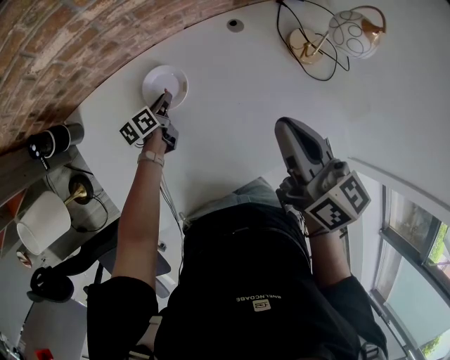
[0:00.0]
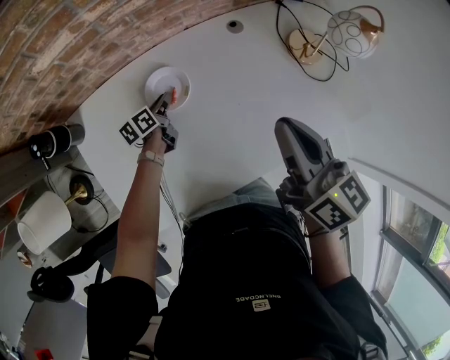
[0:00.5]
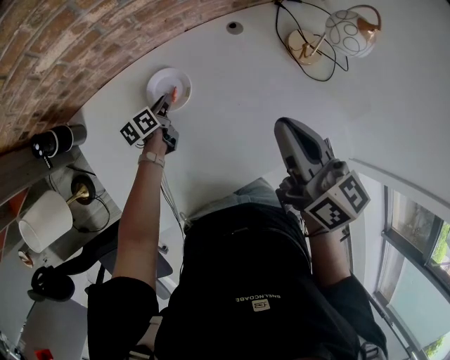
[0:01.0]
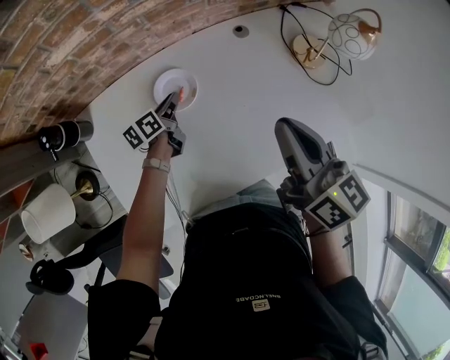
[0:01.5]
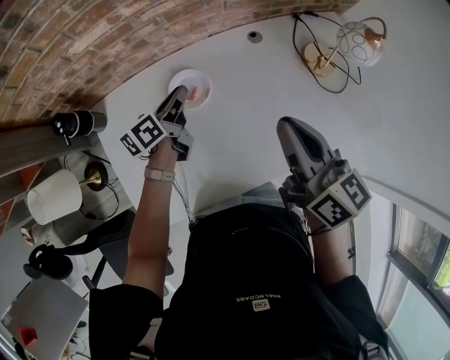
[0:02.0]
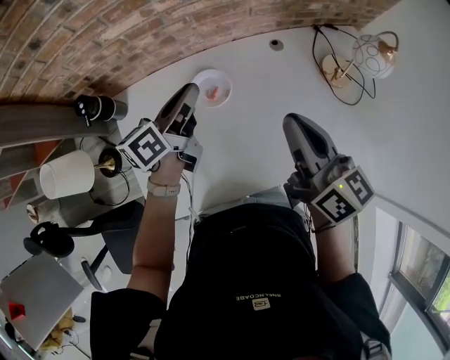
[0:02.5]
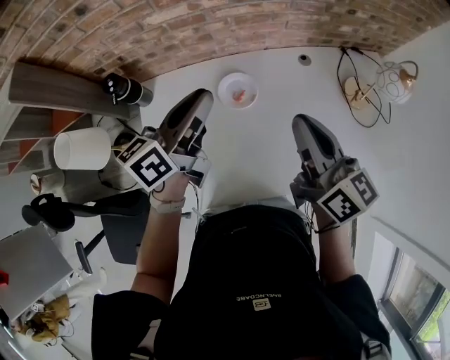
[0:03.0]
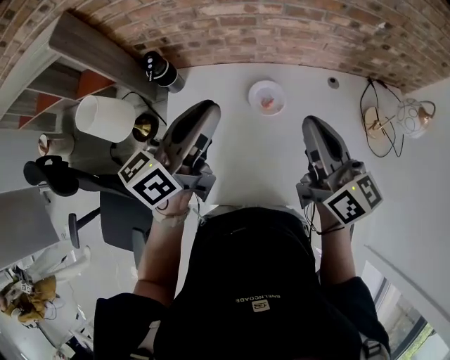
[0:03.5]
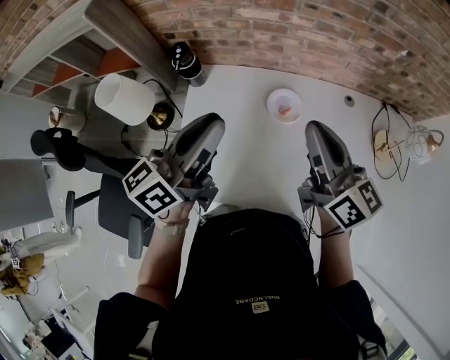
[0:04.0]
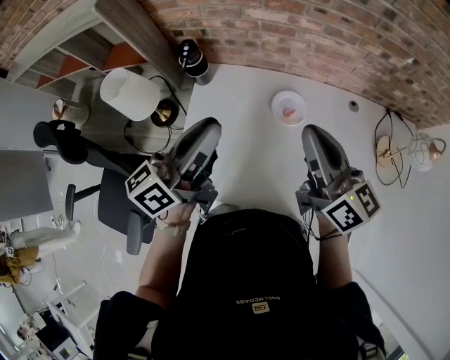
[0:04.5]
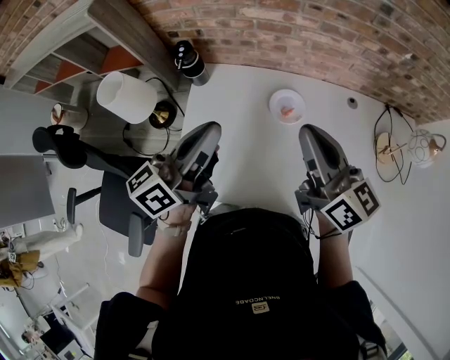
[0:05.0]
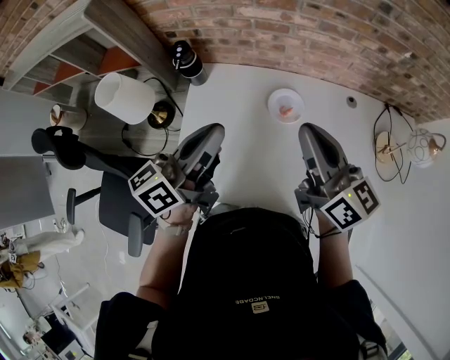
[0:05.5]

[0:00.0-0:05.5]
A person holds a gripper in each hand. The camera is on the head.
0:00.0 to 0:02.0: The left gripper goes roughly 20 cm upward.
0:02.0 to 0:03.5: The left gripper is displaced upward, backward and to the left by about 30 cm, and turns by roughly 30 degrees; the right gripper moves to the left, approximately 10 cm, and swivels approximately 20 degrees.
0:03.5 to 0:05.5: The right gripper heads to the left, covering about 5 cm; the left gripper moves approximately 5 cm.

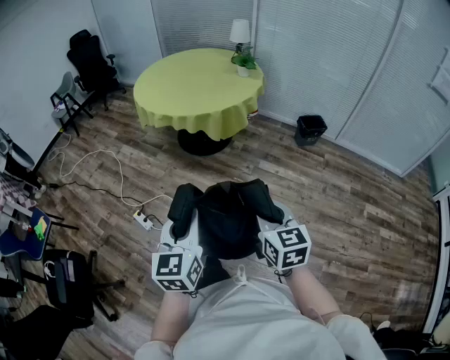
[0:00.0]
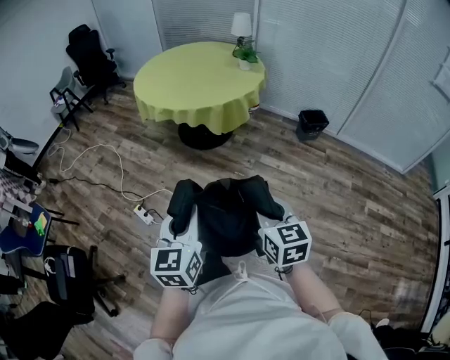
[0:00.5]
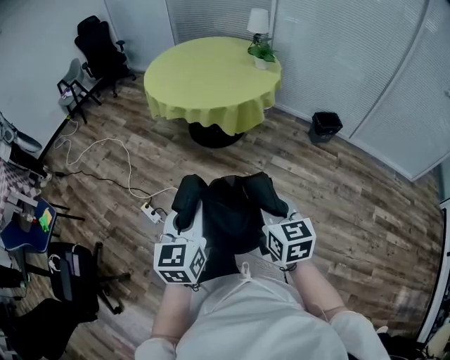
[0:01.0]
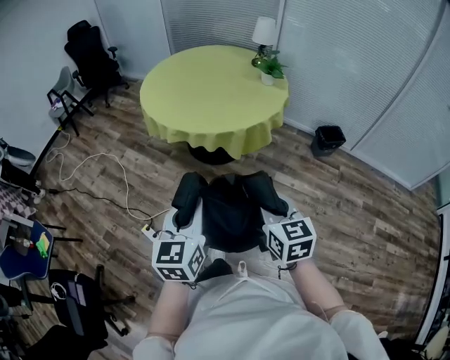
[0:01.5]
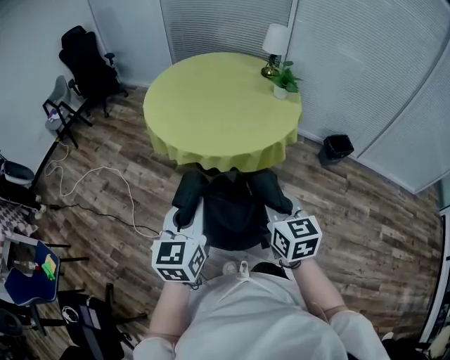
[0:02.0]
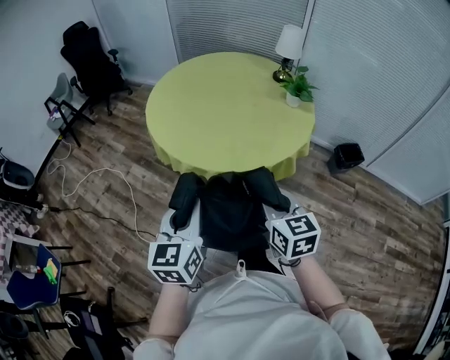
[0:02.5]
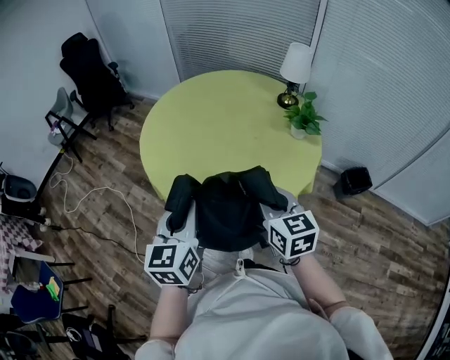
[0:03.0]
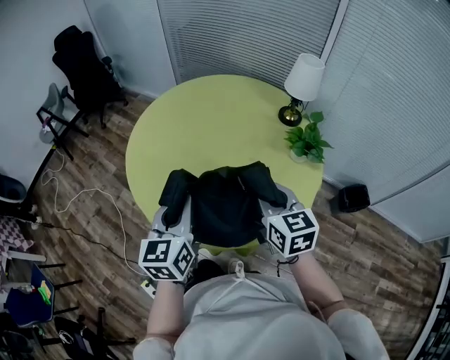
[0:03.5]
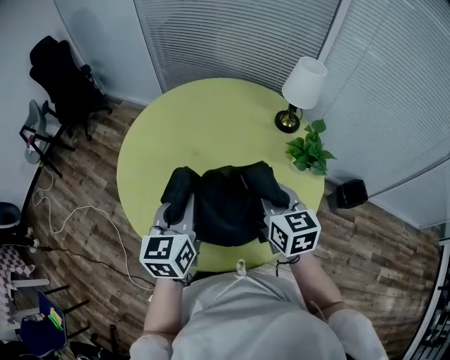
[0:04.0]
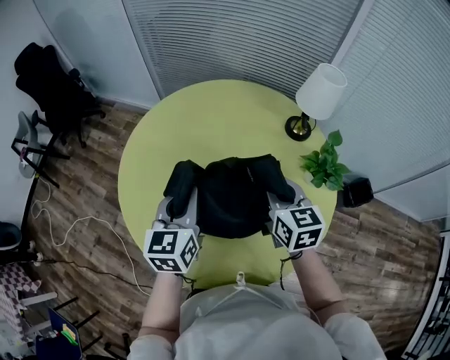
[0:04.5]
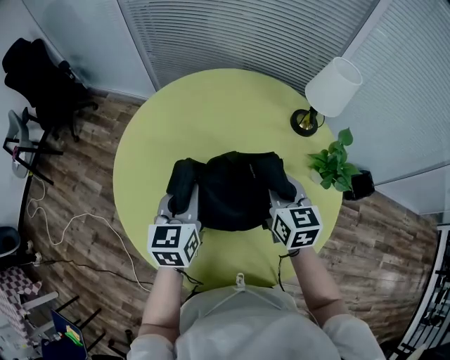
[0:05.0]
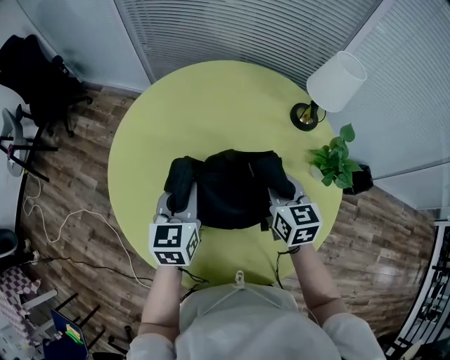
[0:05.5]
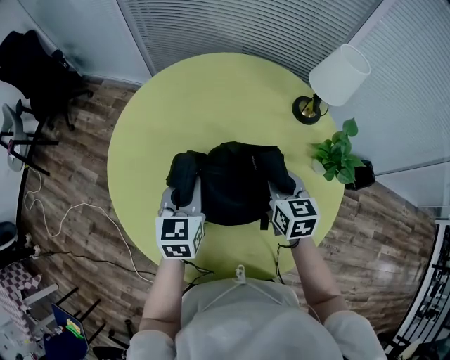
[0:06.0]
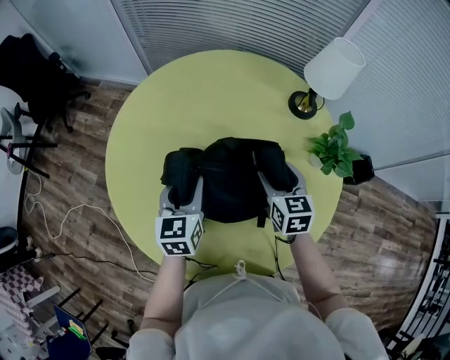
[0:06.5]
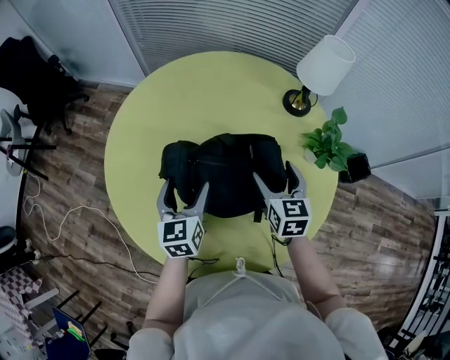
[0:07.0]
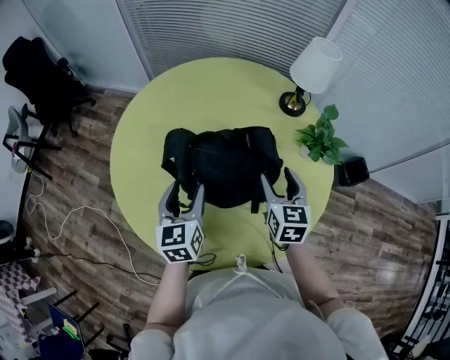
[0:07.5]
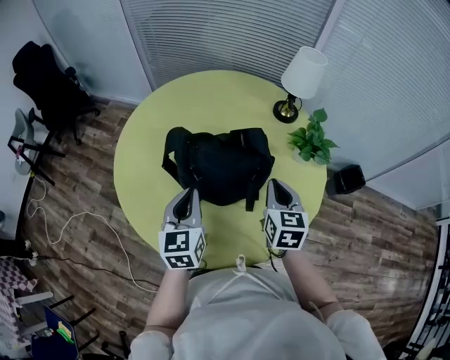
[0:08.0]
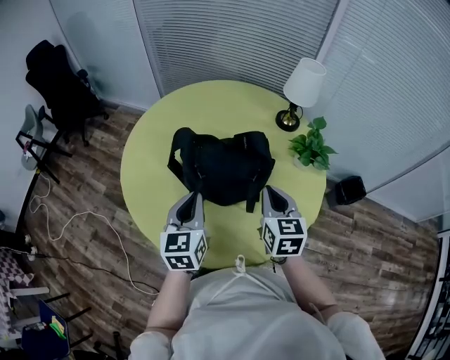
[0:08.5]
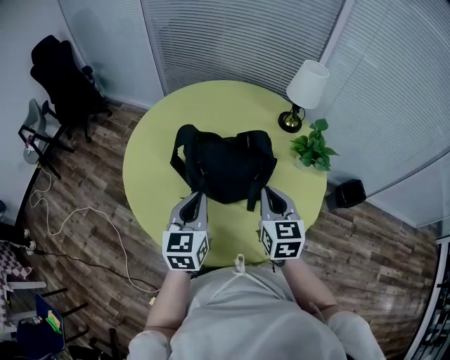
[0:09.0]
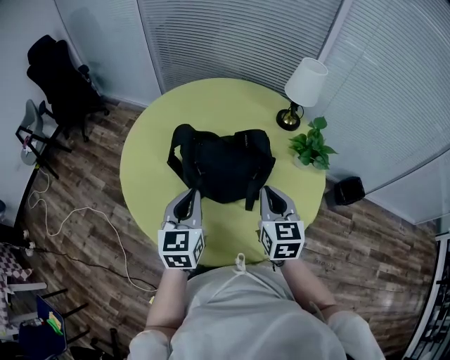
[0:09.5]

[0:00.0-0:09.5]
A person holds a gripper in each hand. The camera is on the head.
0:00.0 to 0:02.0: The two grippers travel together, forward, some 40 cm.
0:02.0 to 0:04.0: Both grippers are carried forward, some 60 cm.
0:04.0 to 0:05.5: The grippers both shift forward and downward by roughly 20 cm.
0:05.5 to 0:07.5: Both grippers move backward, some 10 cm. The right gripper opens. The left gripper opens.
0:07.5 to 0:09.5: Both grippers move backward and upward, about 10 cm. The left gripper closes up; the right gripper closes its fingers.

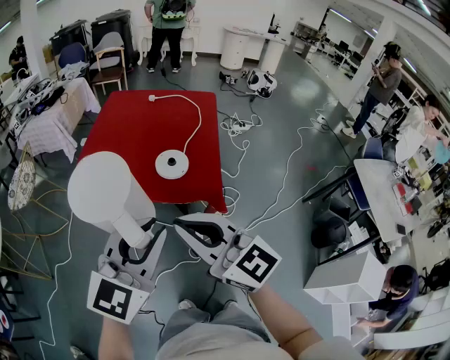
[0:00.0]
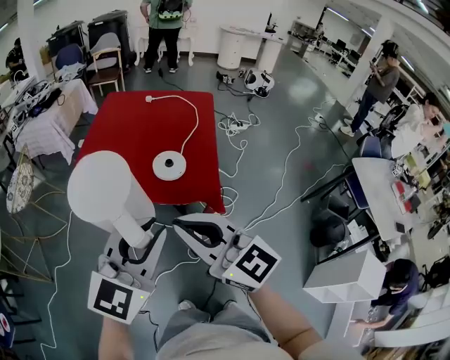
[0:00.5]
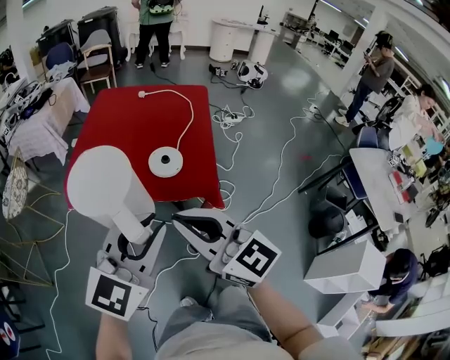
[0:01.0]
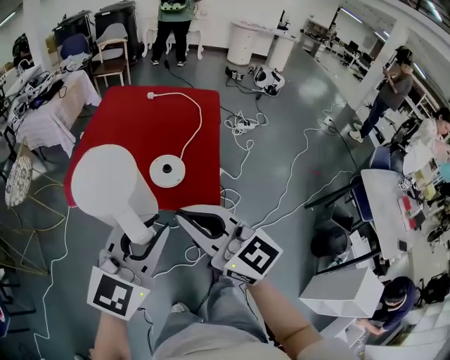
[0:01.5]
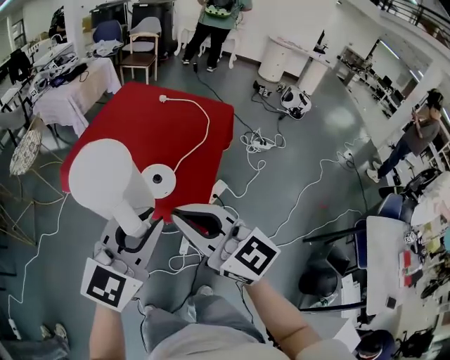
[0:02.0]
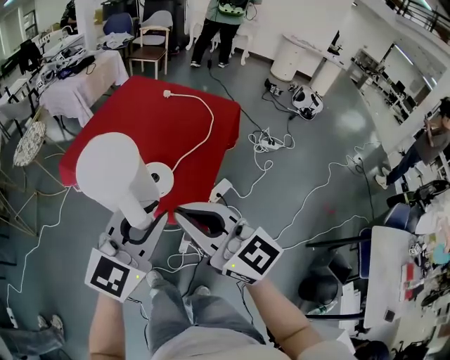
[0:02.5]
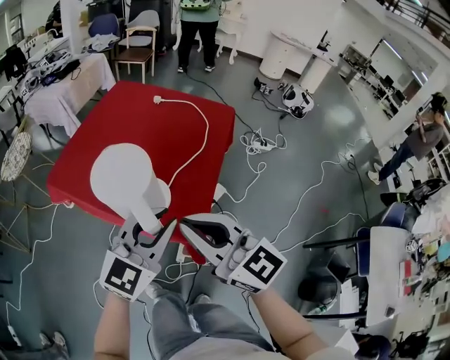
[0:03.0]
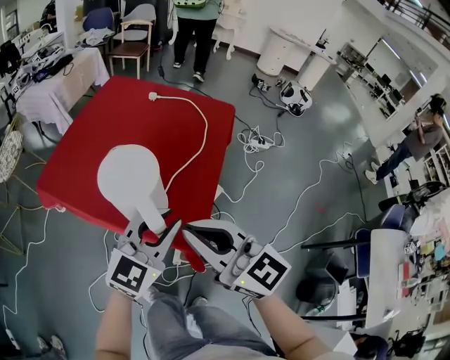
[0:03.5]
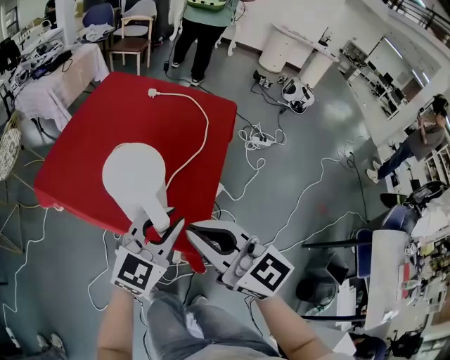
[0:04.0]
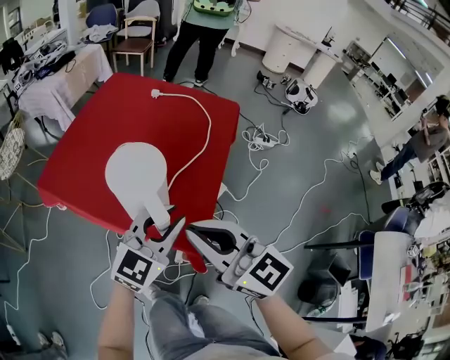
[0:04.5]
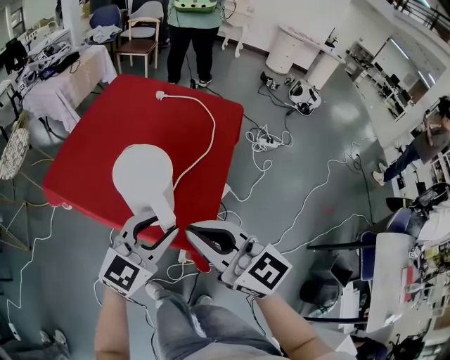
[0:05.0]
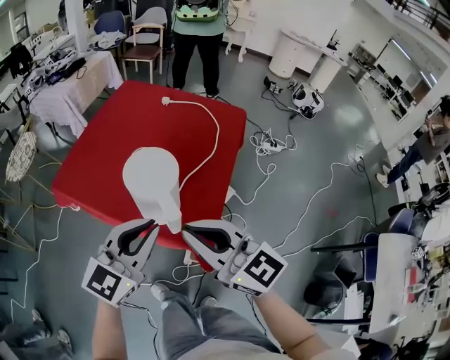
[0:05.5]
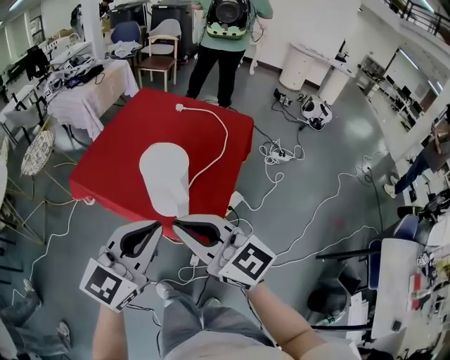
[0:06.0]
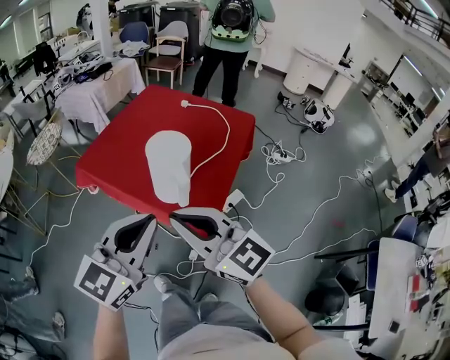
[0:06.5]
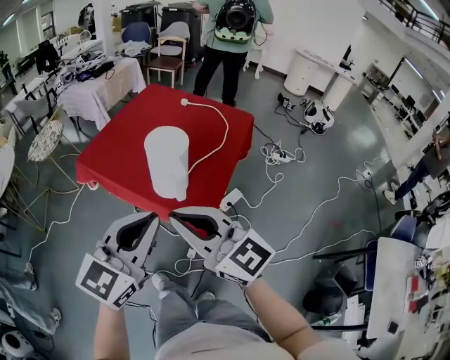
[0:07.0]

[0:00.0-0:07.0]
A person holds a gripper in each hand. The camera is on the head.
0:00.0 to 0:02.0: Both grippers move to the right and forward, approximately 20 cm.
0:02.0 to 0:03.5: The left gripper travels forward, downward and to the right by some 20 cm, while the right gripper shifts roughly 15 cm forward and downward.
0:03.5 to 0:05.0: The grippers make only small movements.
0:05.0 to 0:07.0: Both grippers travel together backward, upward and to the left, some 20 cm. The left gripper closes its fingers.

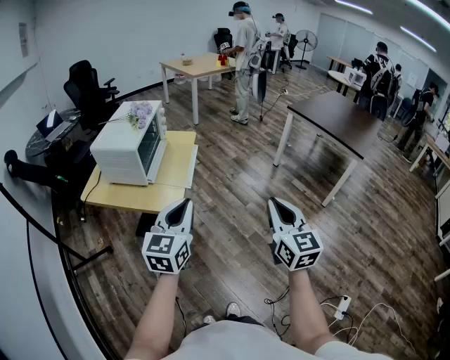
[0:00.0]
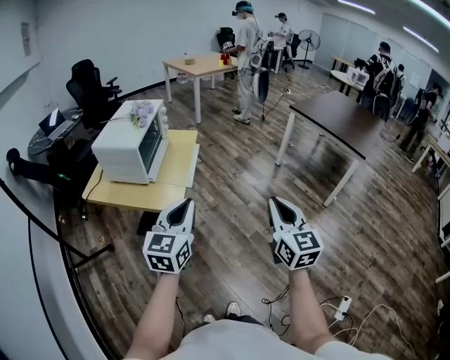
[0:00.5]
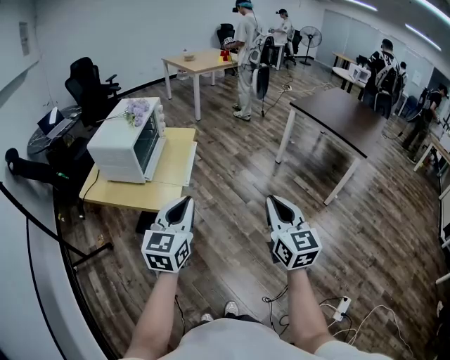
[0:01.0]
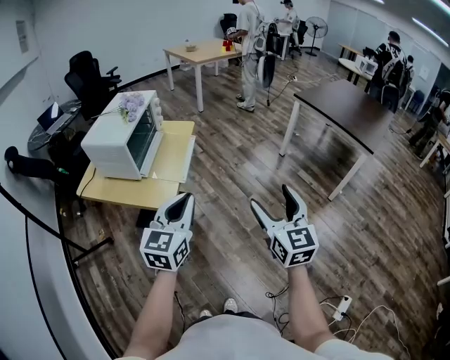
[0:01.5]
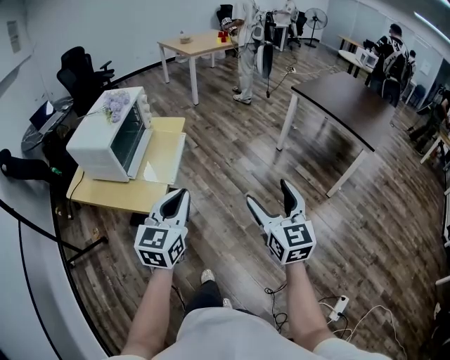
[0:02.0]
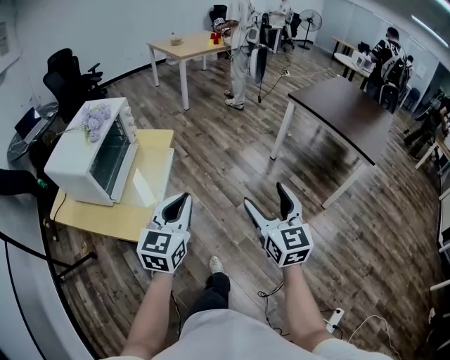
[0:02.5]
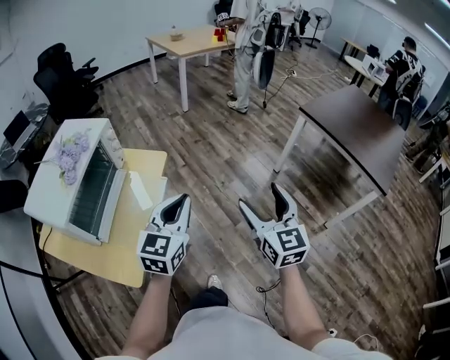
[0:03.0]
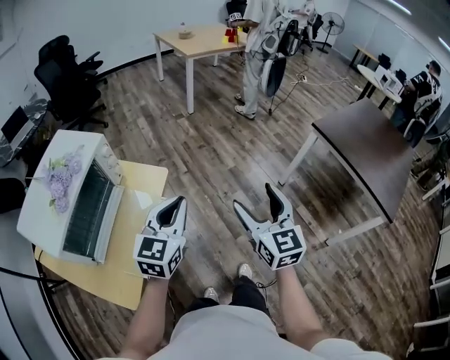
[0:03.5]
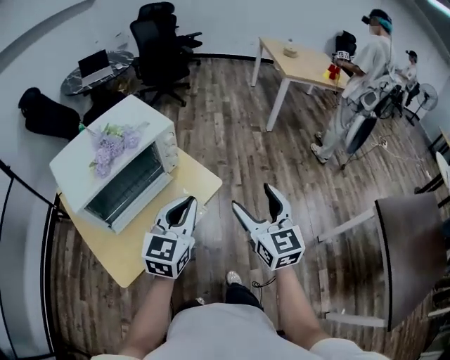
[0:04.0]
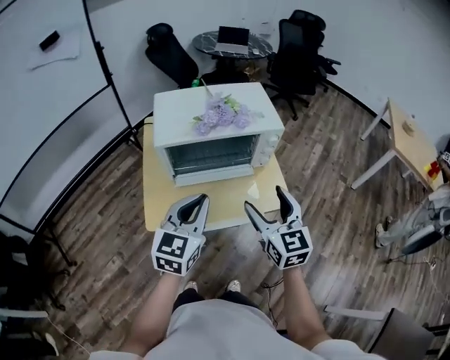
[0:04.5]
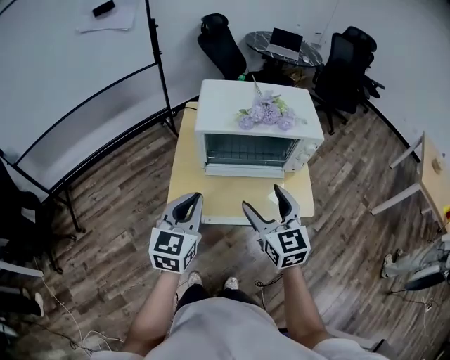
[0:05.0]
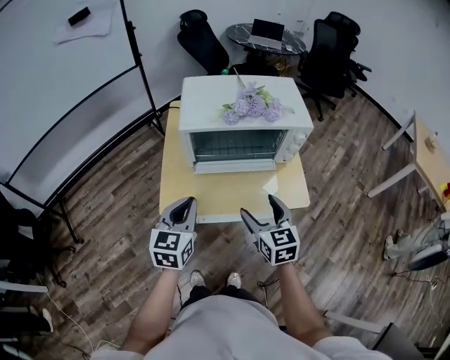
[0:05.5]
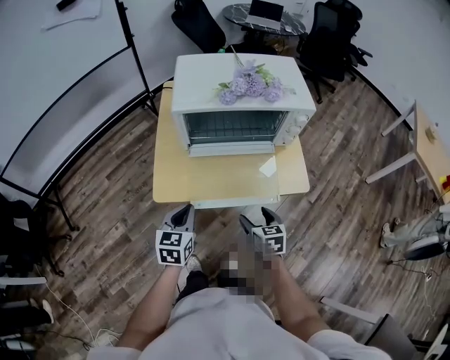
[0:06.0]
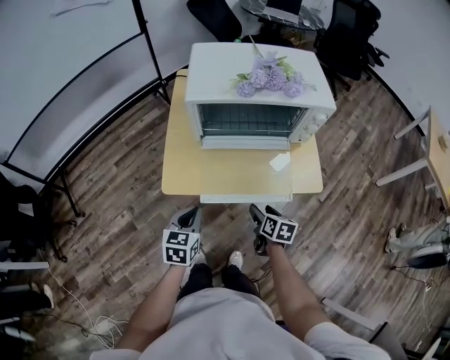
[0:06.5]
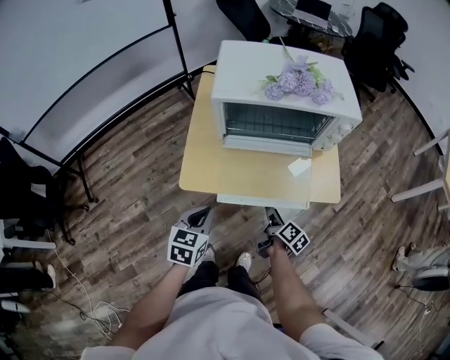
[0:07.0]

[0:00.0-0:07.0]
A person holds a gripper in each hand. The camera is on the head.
0:00.0 to 0:02.0: Both grippers travel together forward and to the right, approximately 10 cm. The right gripper opens.
0:02.0 to 0:03.5: The two grippers travel together, forward, approximately 40 cm.
0:03.5 to 0:05.0: The left gripper changes place by roughly 25 cm, and changes its angle by roughly 80 degrees. The right gripper shifts by some 35 cm, and turns by roughly 80 degrees.
0:05.0 to 0:07.0: The left gripper shifts some 20 cm downward, and turns by roughly 20 degrees, while the right gripper heads downward, covering about 30 cm, and twists about 70 degrees clockwise, seen from behind.
